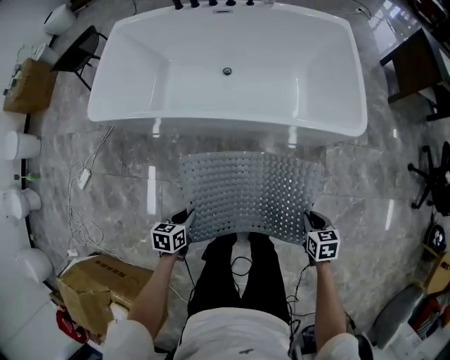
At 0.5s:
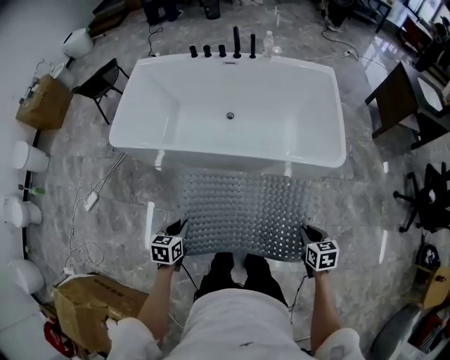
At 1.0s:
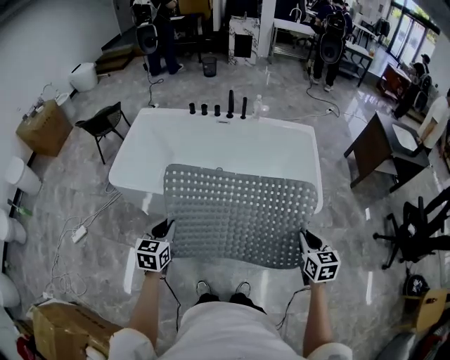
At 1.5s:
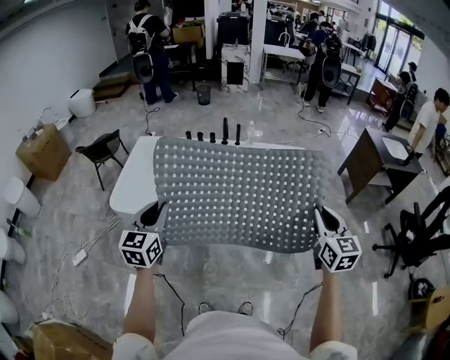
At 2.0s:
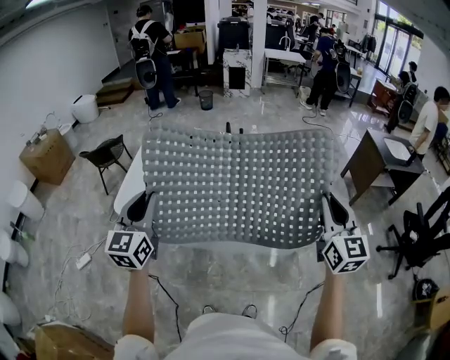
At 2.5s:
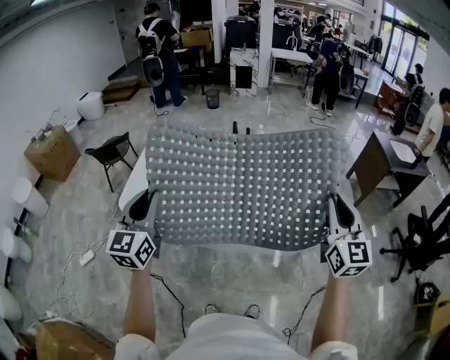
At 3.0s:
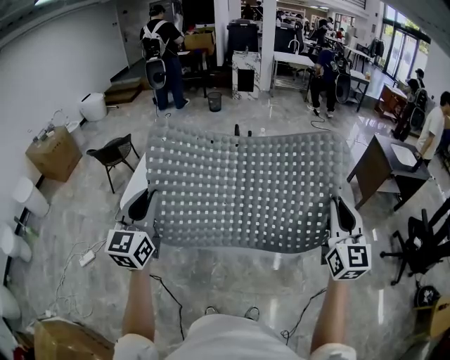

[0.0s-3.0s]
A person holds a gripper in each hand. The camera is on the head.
0.0s to 1.5s: The two grippers go some 50 cm upward. The right gripper points its fingers roughly 50 degrees further upward. The left gripper points its fingers approximately 50 degrees further upward.
1.5s to 3.0s: Both grippers travel together upward, about 10 cm.

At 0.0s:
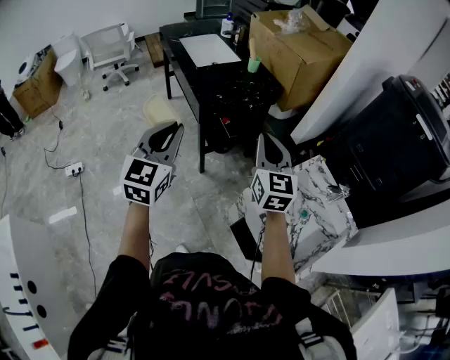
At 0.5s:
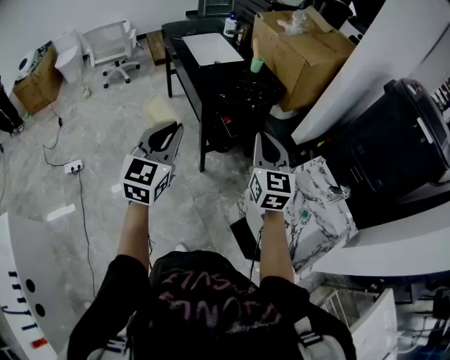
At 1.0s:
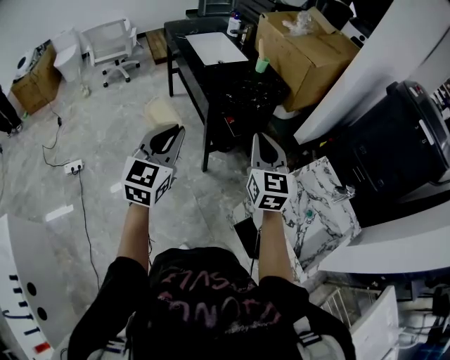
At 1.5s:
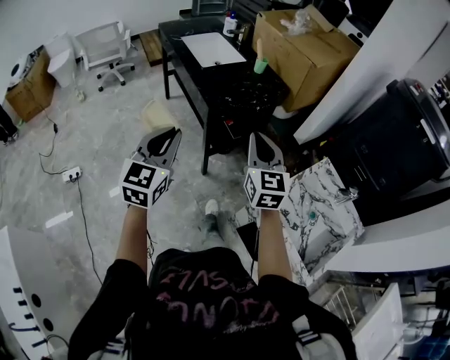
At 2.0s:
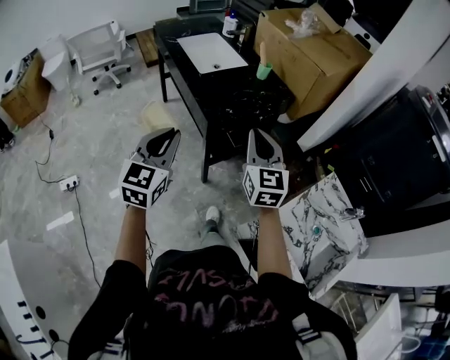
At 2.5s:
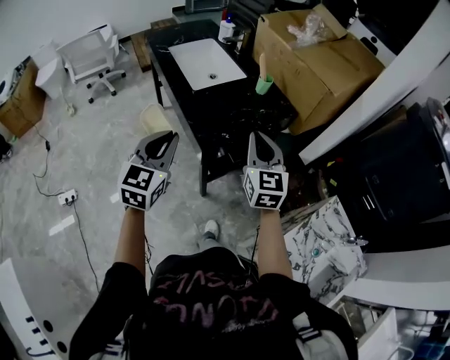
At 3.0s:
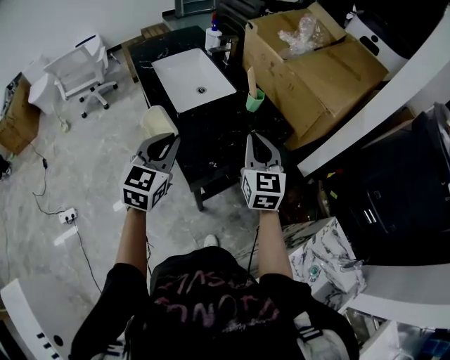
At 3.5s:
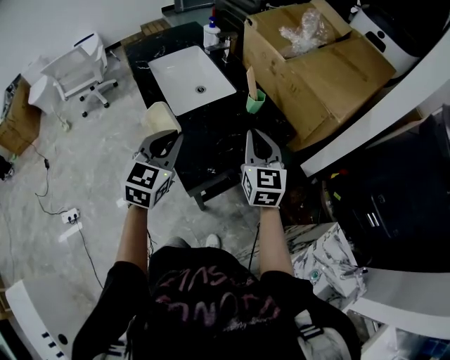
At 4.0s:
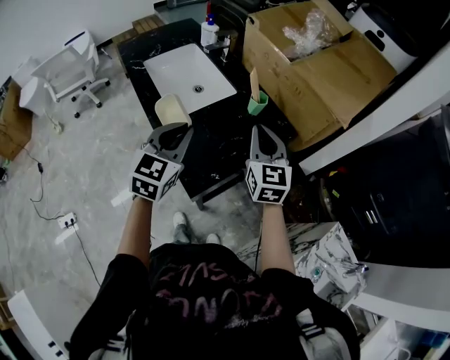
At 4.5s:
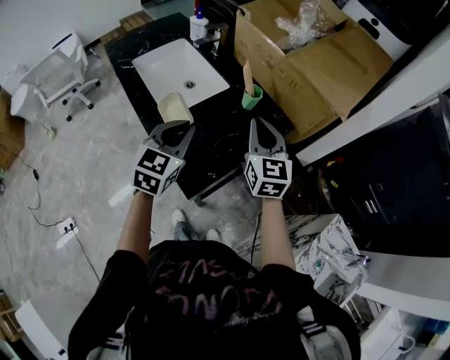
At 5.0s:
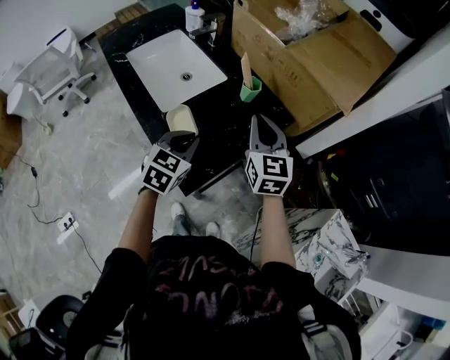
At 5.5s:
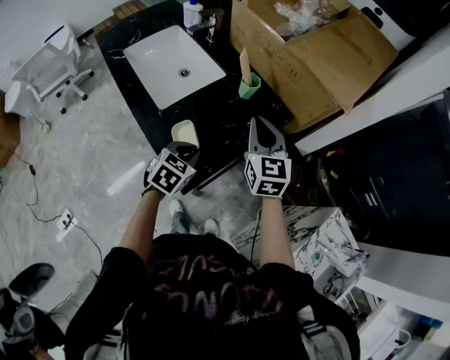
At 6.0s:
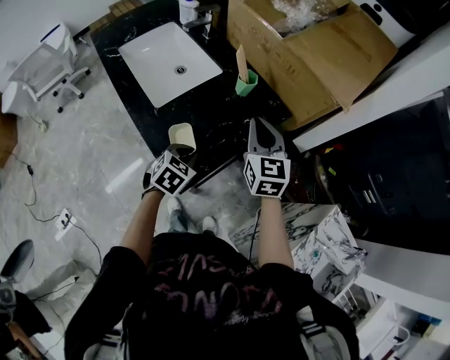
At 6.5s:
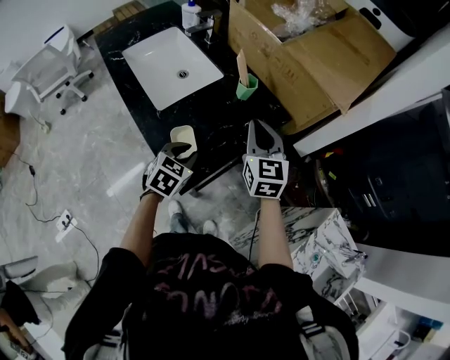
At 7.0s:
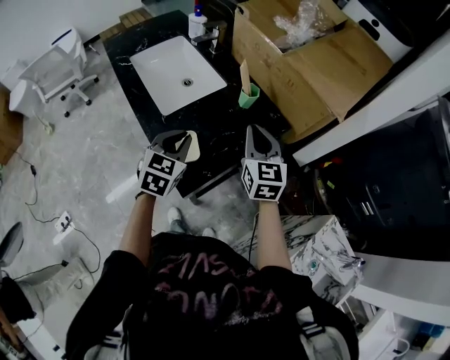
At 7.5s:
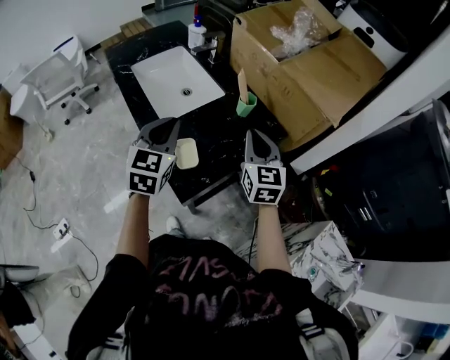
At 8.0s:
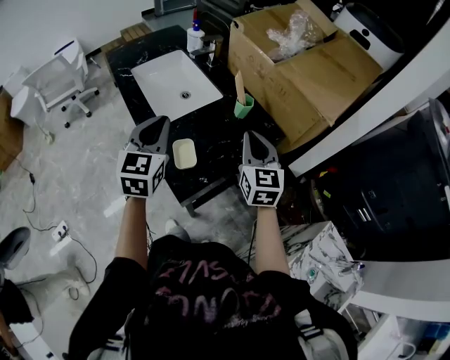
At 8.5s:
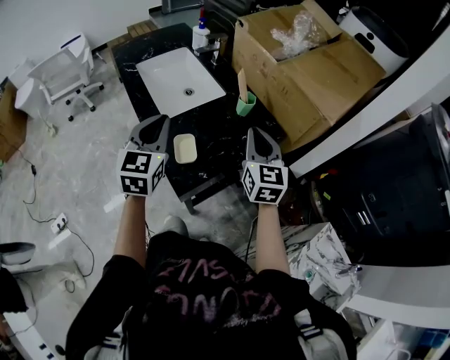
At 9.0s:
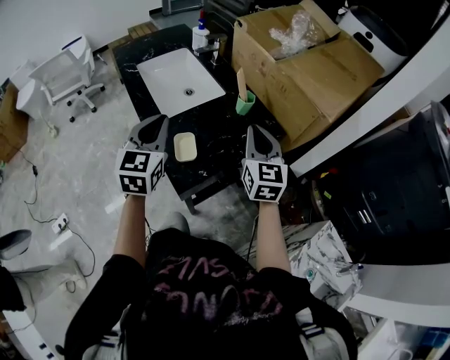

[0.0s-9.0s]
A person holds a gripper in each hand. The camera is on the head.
0.0s to 2.0s: The right gripper shifts approximately 20 cm forward and to the left, while the left gripper is displaced forward, to the left and downward by some 15 cm.
2.0s to 4.5s: The two grippers go roughly 40 cm forward.
4.5s to 7.0s: The left gripper reaches roughly 20 cm downward, then returns.
7.0s to 9.0s: The left gripper travels upward by roughly 10 cm, and rotates roughly 20 degrees.

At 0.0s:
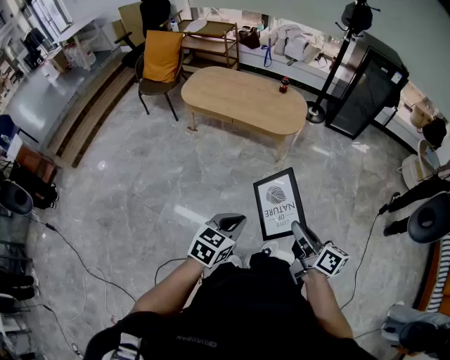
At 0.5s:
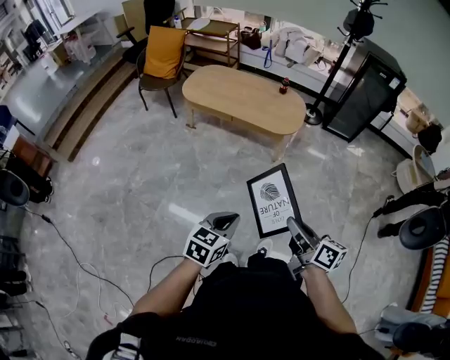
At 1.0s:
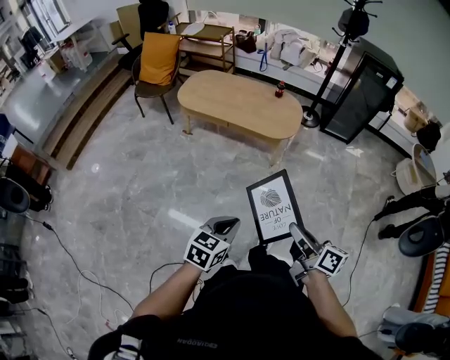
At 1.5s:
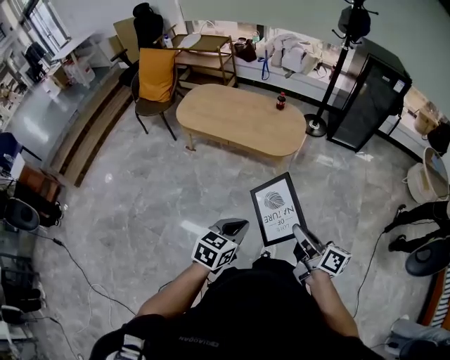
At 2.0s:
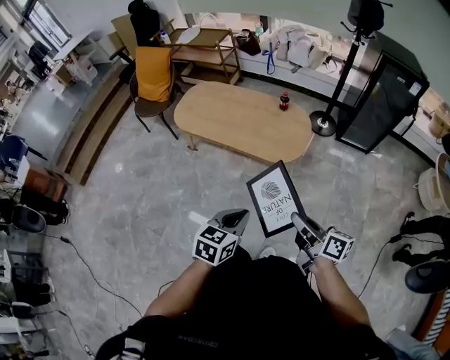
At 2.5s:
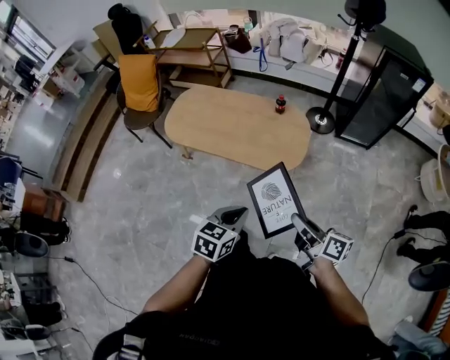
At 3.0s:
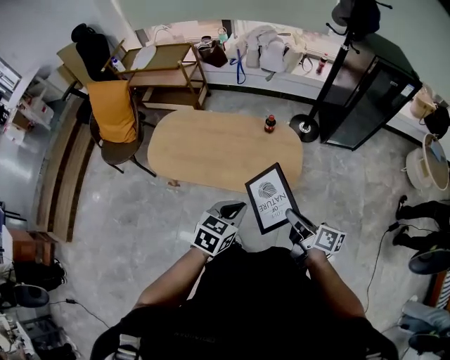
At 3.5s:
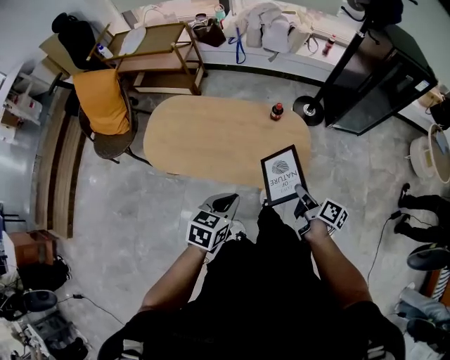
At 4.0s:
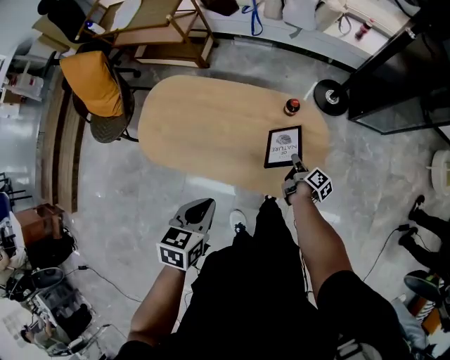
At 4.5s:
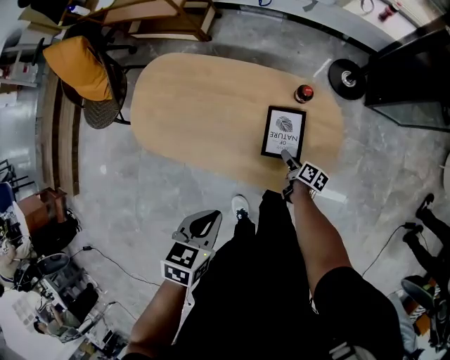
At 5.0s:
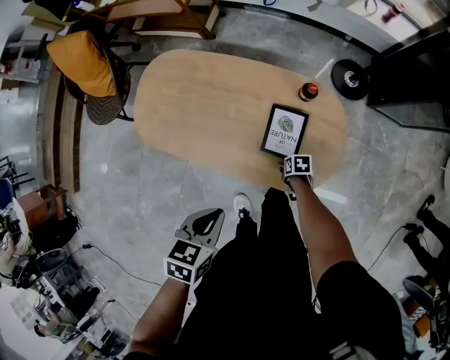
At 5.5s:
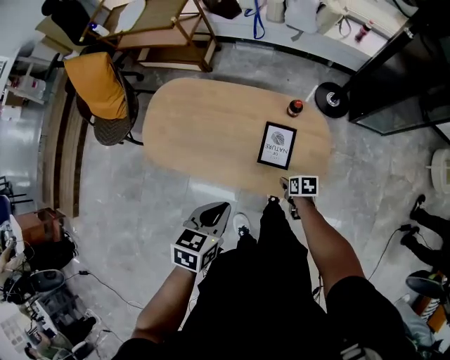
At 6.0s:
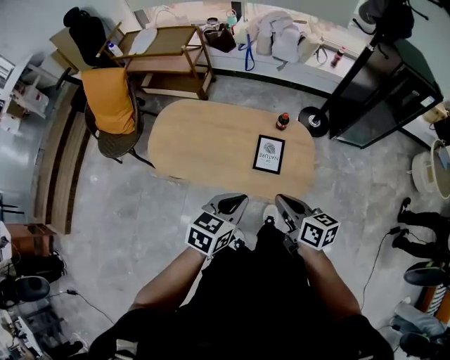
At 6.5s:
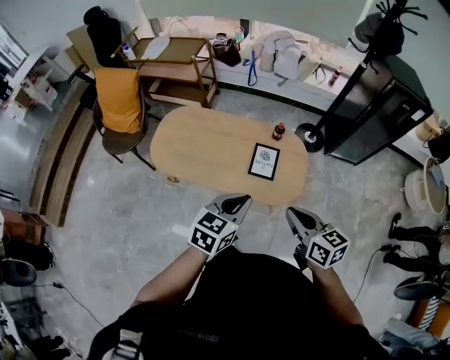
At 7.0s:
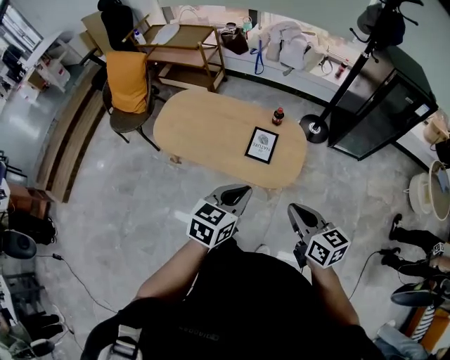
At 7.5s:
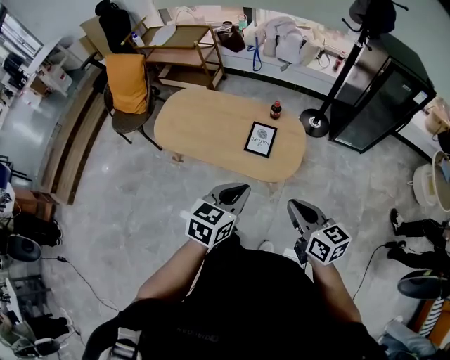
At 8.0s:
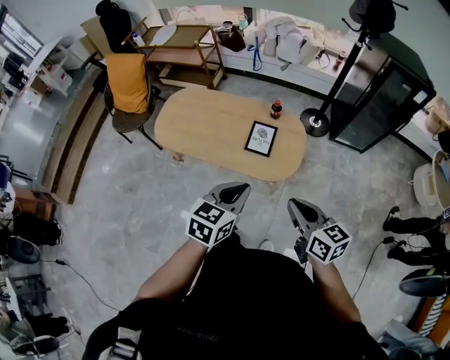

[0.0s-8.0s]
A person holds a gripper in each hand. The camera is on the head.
0.0s to 2.0s: The two grippers go some 25 cm forward.
2.0s to 4.0s: Both grippers are carried forward, roughly 50 cm. The right gripper goes some 35 cm downward, and turns by some 50 degrees.
4.0s to 6.0s: The right gripper is displaced upward by about 30 cm, rolls counterclockwise, seen from behind, by roughly 50 degrees, and opens and closes again. The left gripper shifts by approximately 10 cm, and turns by approximately 20 degrees.
6.0s to 8.0s: The two grippers go some 20 cm backward, to the right and upward.

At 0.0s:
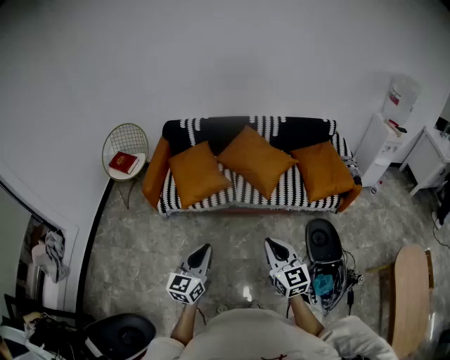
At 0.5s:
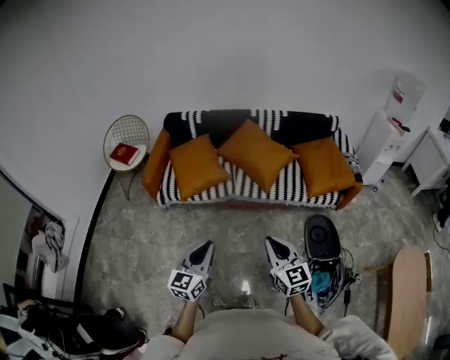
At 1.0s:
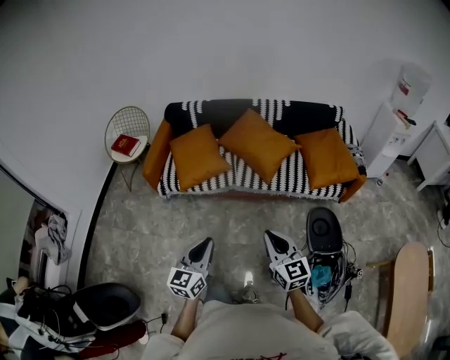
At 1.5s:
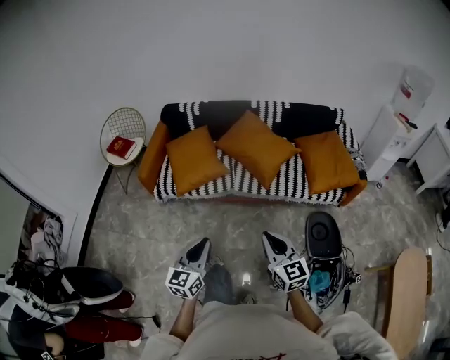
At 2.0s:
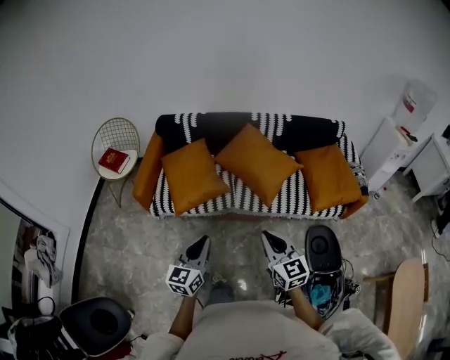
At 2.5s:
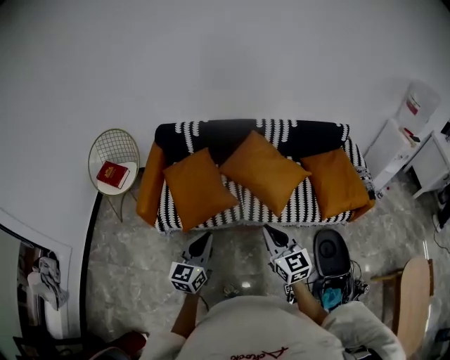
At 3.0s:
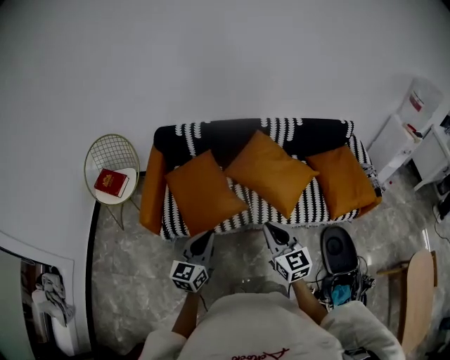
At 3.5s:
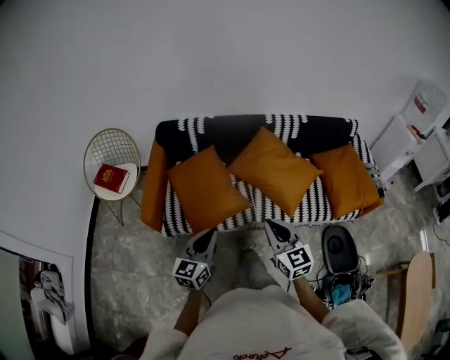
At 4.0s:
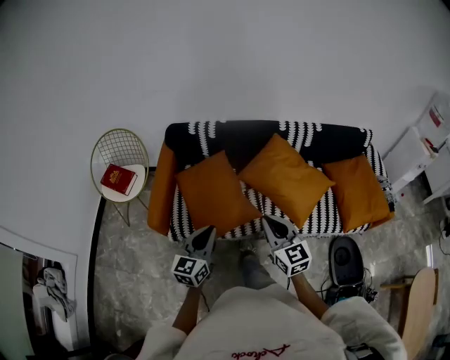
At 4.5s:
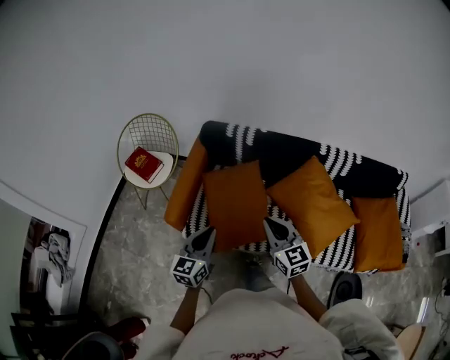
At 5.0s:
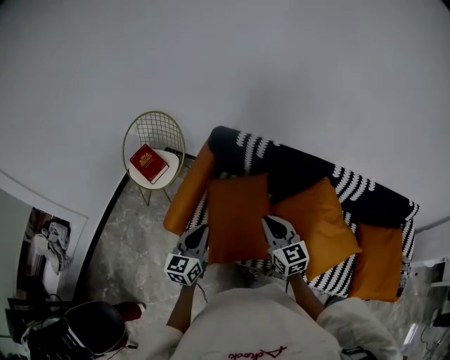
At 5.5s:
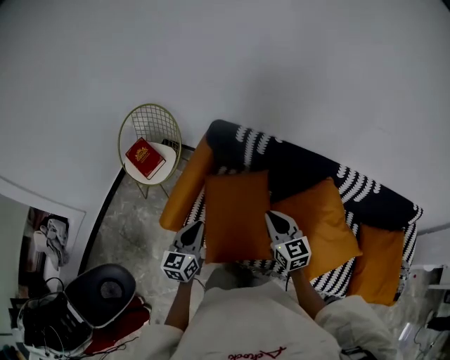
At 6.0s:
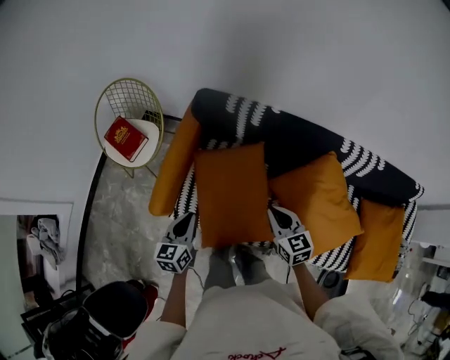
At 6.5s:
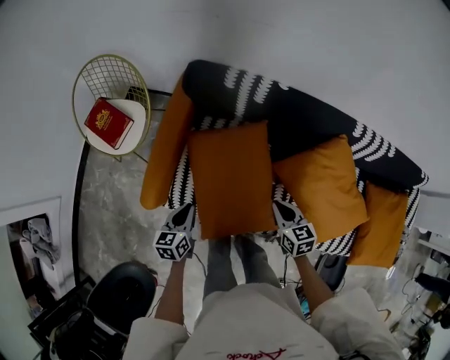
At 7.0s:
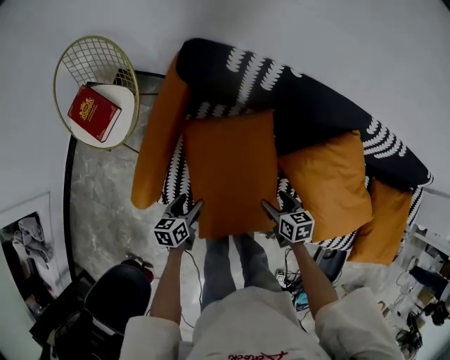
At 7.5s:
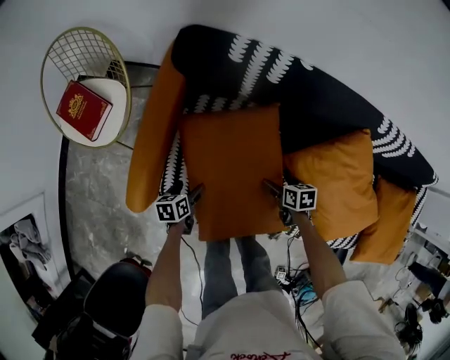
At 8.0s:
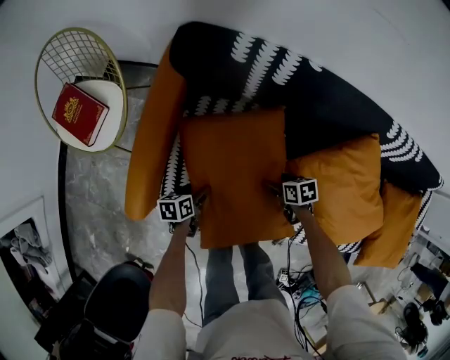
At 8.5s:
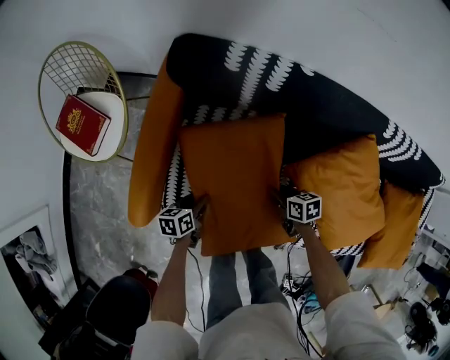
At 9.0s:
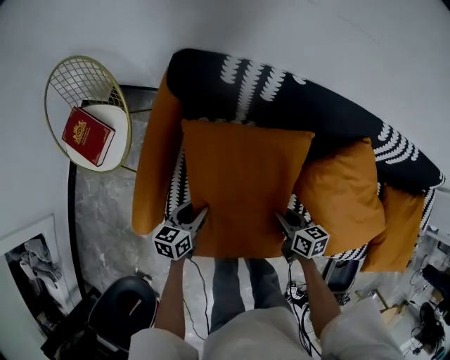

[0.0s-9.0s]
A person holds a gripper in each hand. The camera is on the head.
0.0s to 2.0s: Both grippers travel together forward, about 15 cm.
2.0s to 4.5s: The pair of grippers is taken forward and to the left, about 40 cm.
4.5s to 7.0s: Both grippers move downward and forward, approximately 40 cm. The right gripper angles its fingers downward, by approximately 40 degrees, and opens. The left gripper tilts its fingers about 30 degrees downward, and opens.
7.0s to 9.0s: The left gripper heads forward, covering roughly 5 cm, and reaches approximately 10 cm downward, then returns; the right gripper reaches about 15 cm downward, then returns, and closes up.
